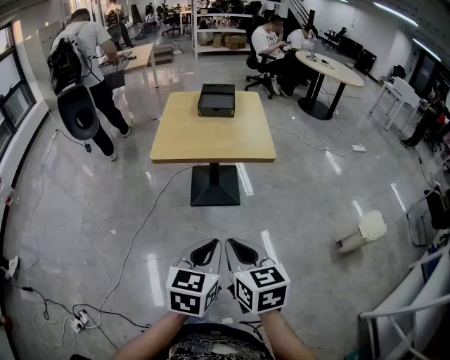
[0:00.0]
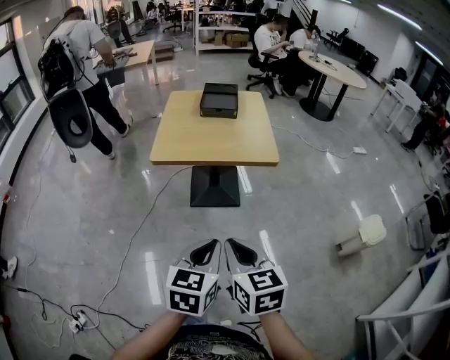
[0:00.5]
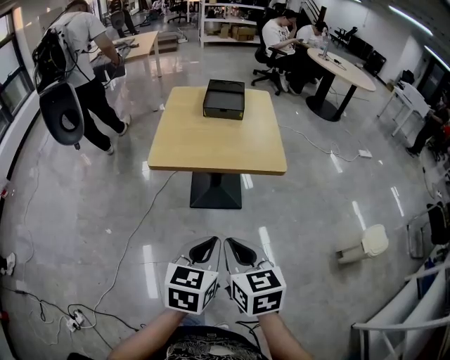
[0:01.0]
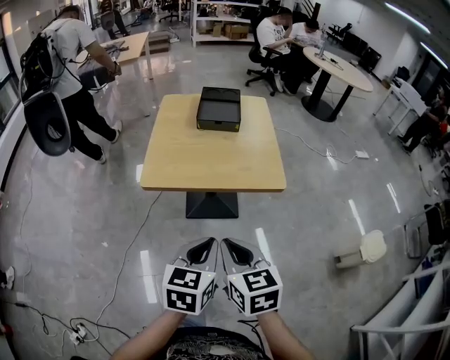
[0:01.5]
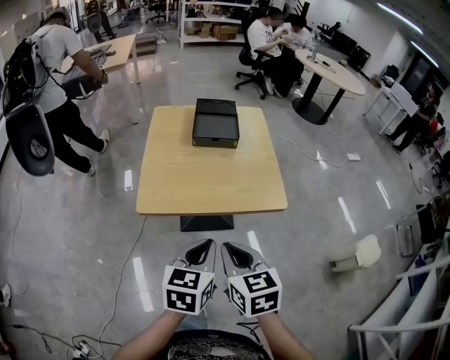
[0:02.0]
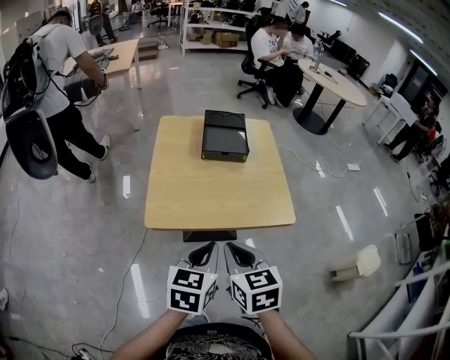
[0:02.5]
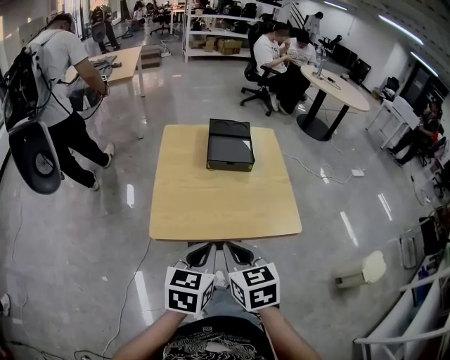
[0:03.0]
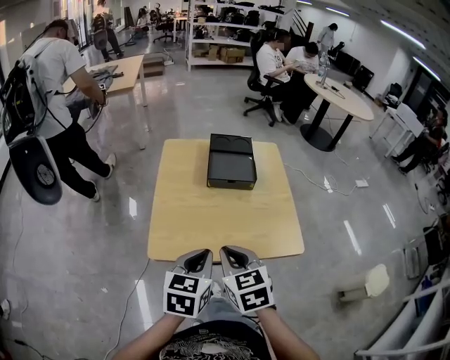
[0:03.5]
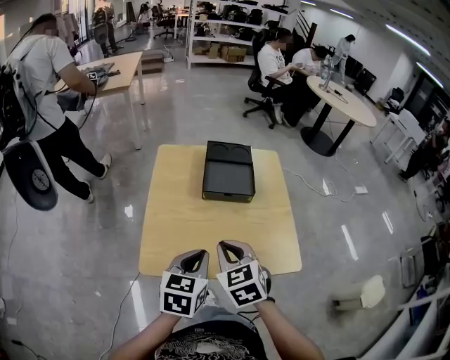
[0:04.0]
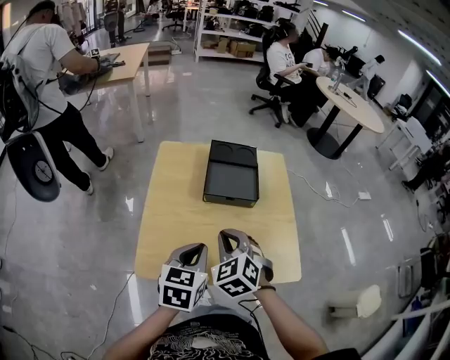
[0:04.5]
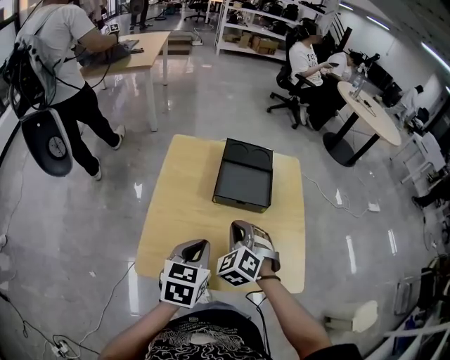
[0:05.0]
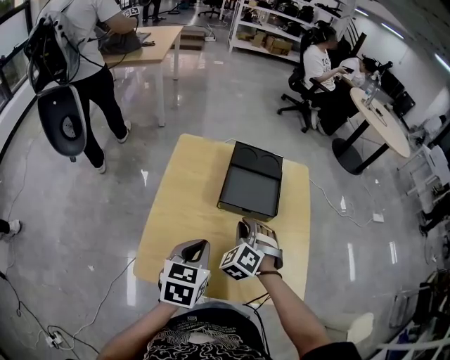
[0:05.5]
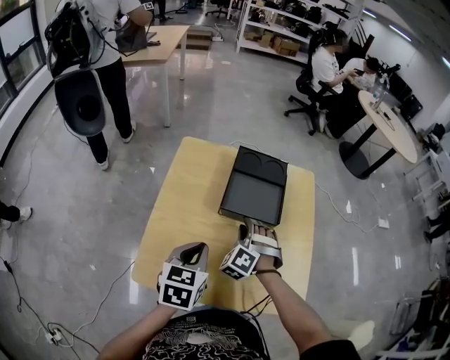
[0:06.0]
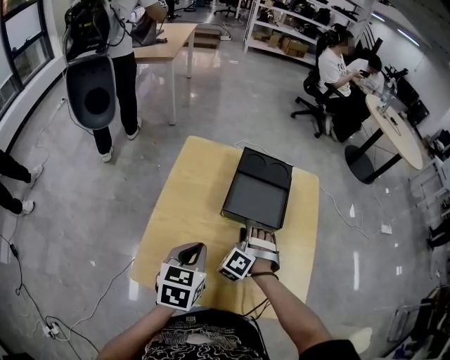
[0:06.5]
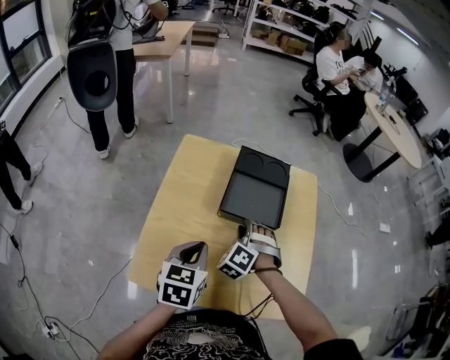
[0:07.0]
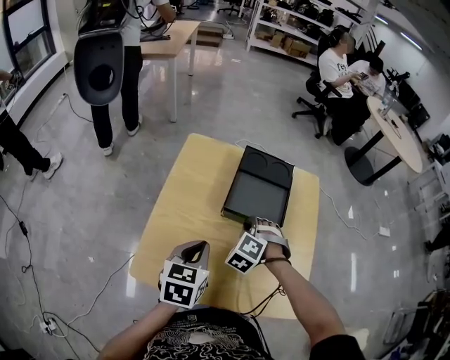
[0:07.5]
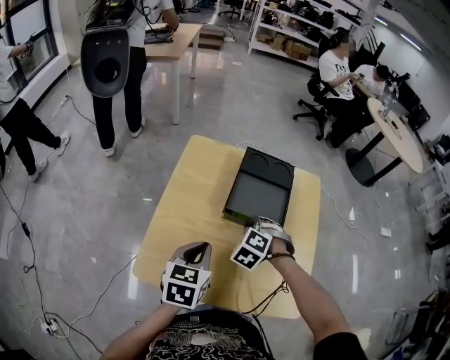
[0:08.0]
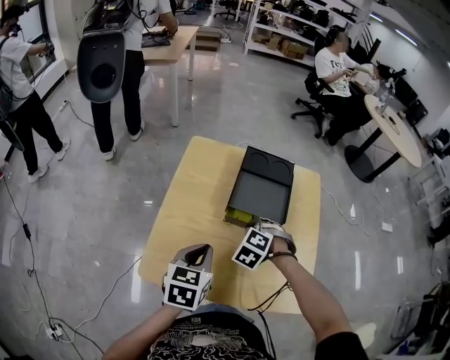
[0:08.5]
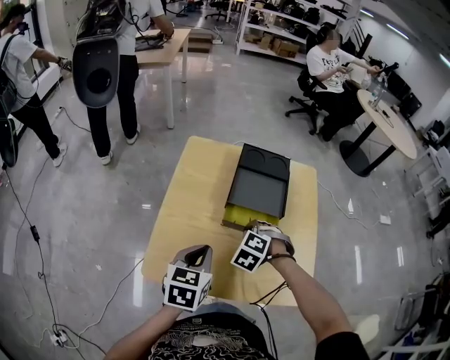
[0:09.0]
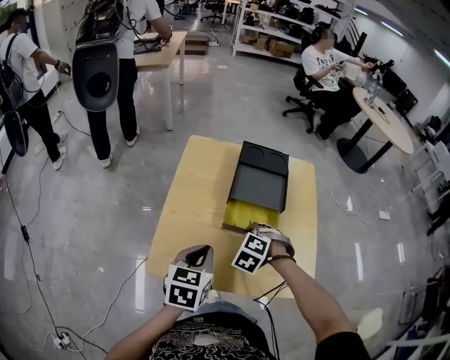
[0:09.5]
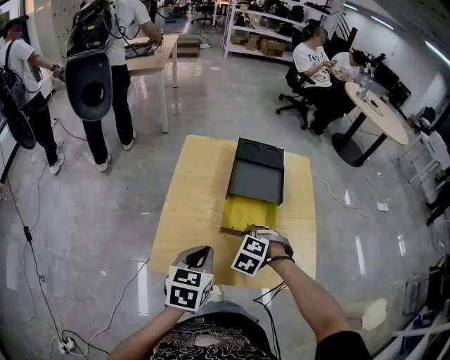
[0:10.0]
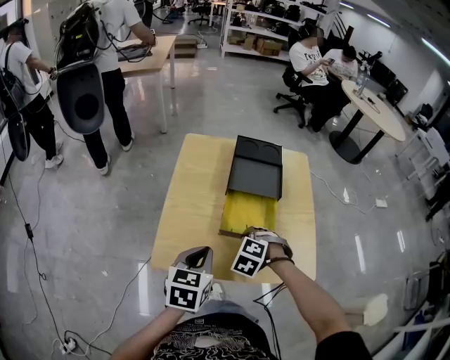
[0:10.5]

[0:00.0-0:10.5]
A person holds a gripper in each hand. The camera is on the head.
0:00.0 to 0:02.0: The right gripper shifts by about 5 cm.
0:02.0 to 0:04.0: The right gripper shifts some 5 cm forward, and swivels roughly 20 degrees.
0:04.0 to 0:06.5: The right gripper heads downward, covering approximately 10 cm, rotates around the line of its fingers by about 60 degrees, counterclockwise from behind, and opens its fingers. The left gripper goes some 5 cm backward.
0:06.5 to 0:08.5: The right gripper turns by some 30 degrees, and closes its fingers.
0:08.5 to 0:10.5: The grippers make only small movements.

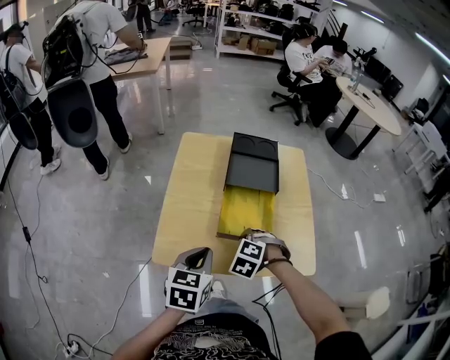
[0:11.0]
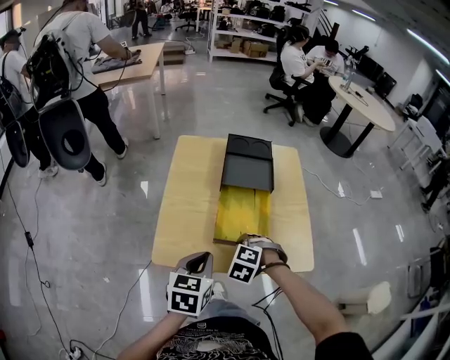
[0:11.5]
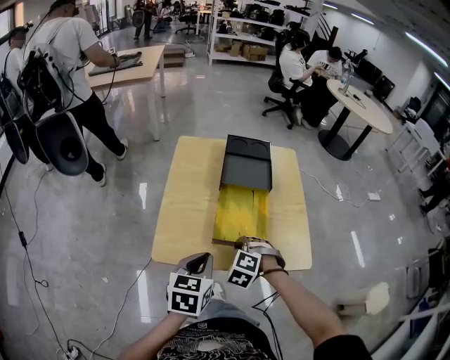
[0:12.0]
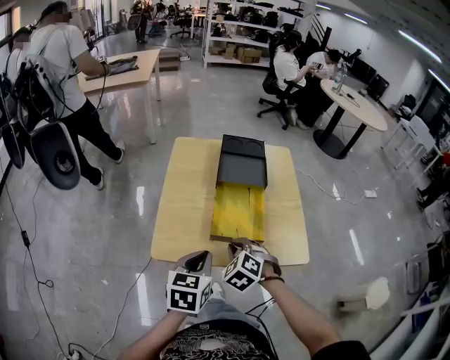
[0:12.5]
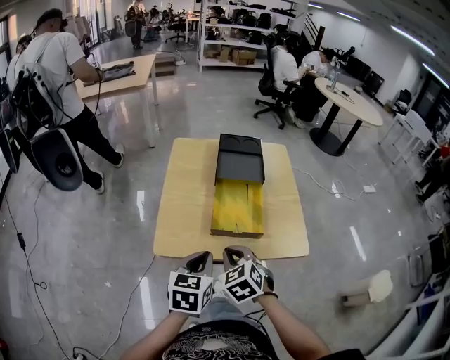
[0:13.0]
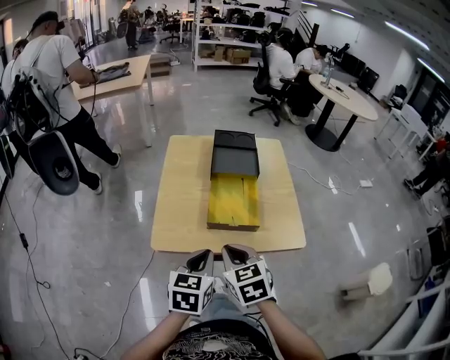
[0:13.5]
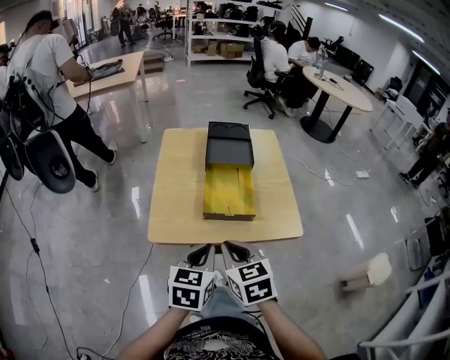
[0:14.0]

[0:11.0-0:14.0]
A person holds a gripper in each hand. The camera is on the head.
0:11.0 to 0:12.5: The right gripper swivels about 20 degrees.
0:12.5 to 0:14.0: The right gripper goes roughly 10 cm upward, and rolls clockwise, seen from behind, by some 40 degrees.

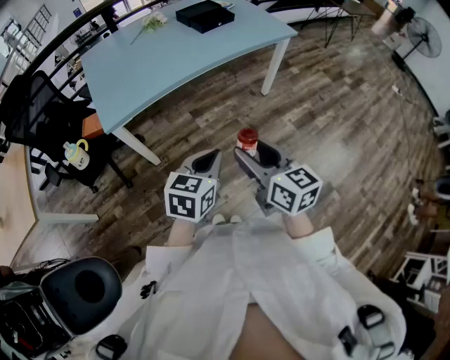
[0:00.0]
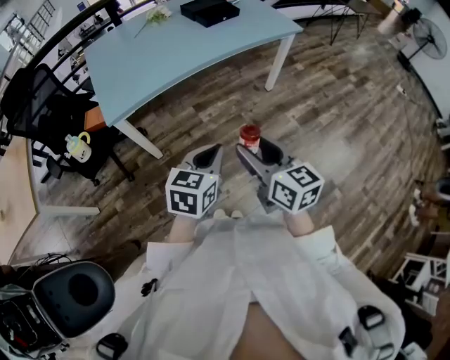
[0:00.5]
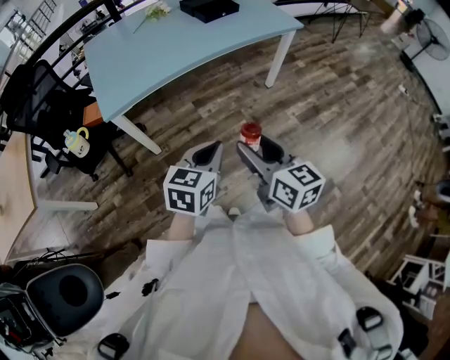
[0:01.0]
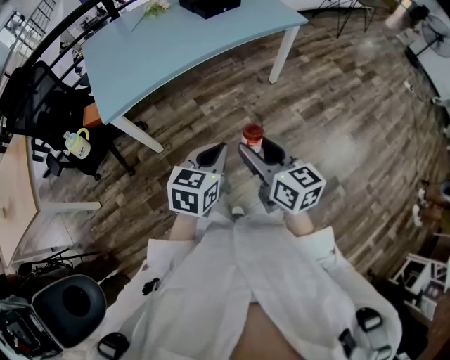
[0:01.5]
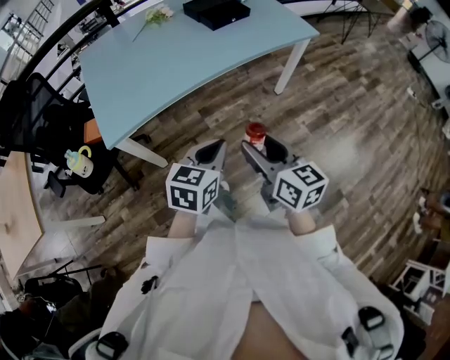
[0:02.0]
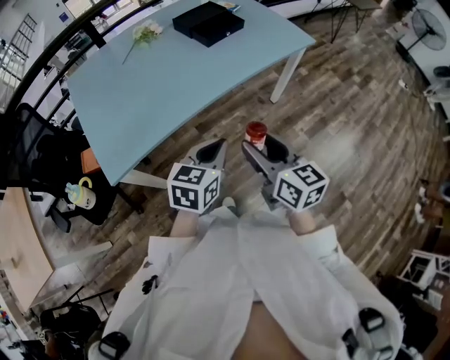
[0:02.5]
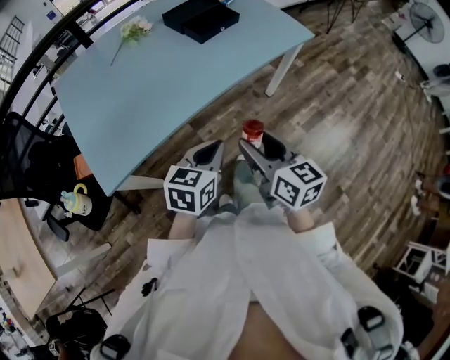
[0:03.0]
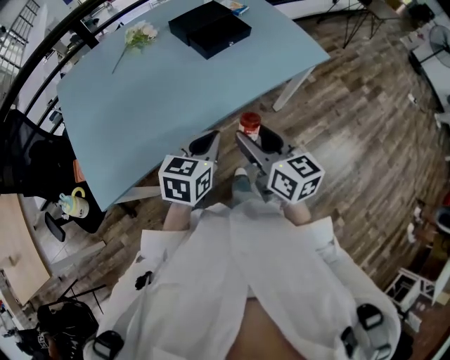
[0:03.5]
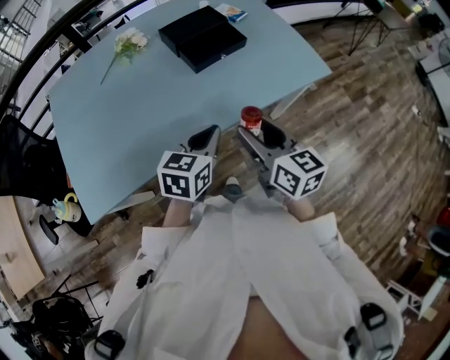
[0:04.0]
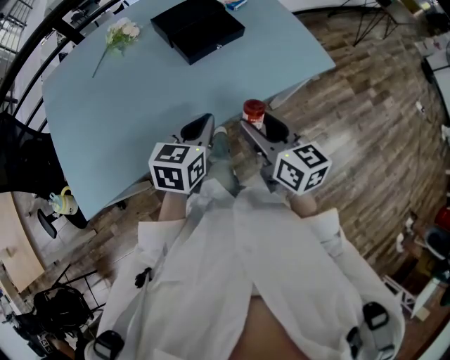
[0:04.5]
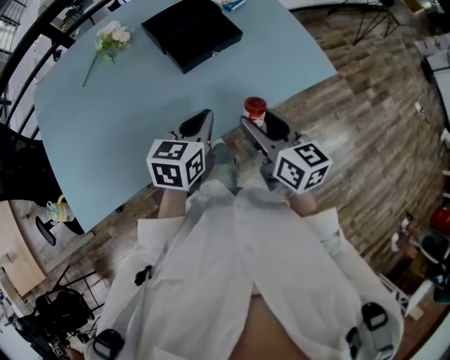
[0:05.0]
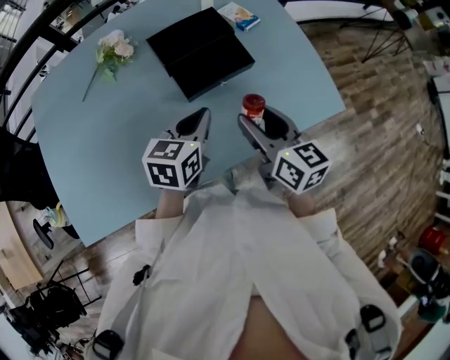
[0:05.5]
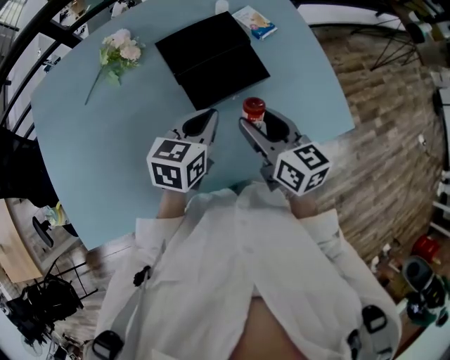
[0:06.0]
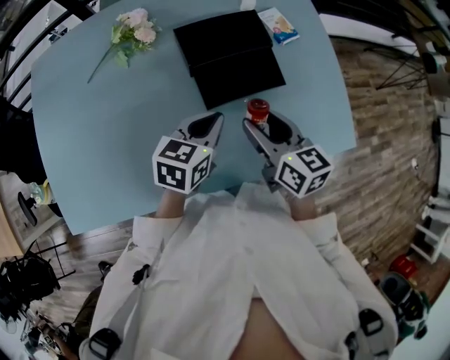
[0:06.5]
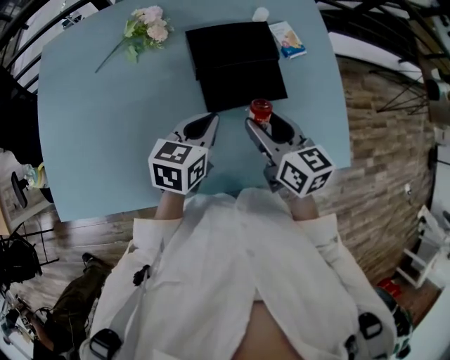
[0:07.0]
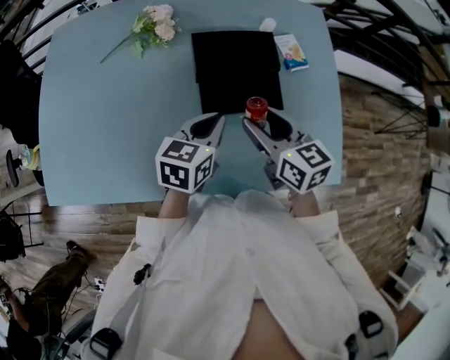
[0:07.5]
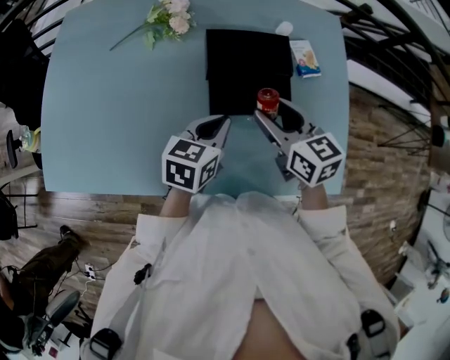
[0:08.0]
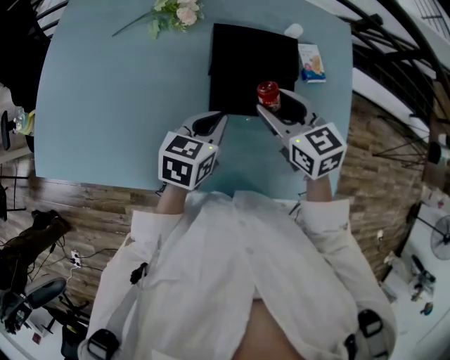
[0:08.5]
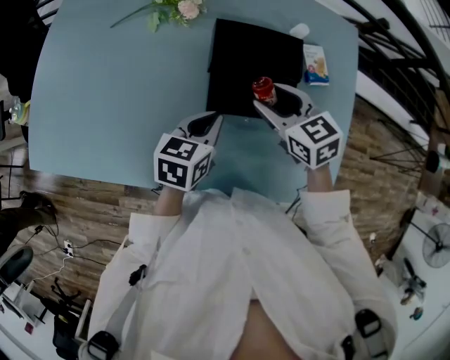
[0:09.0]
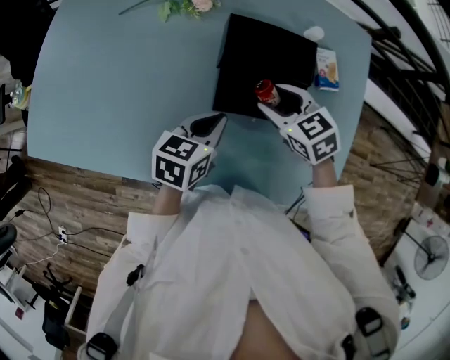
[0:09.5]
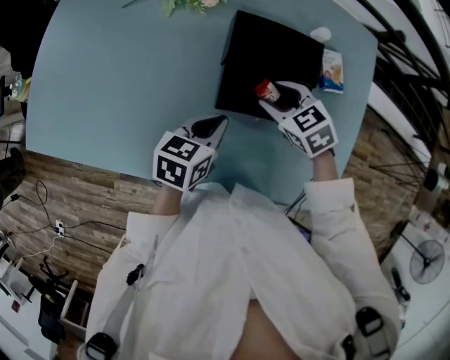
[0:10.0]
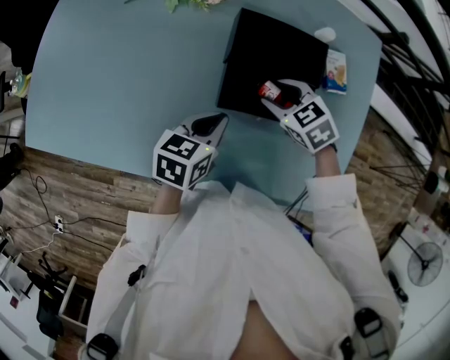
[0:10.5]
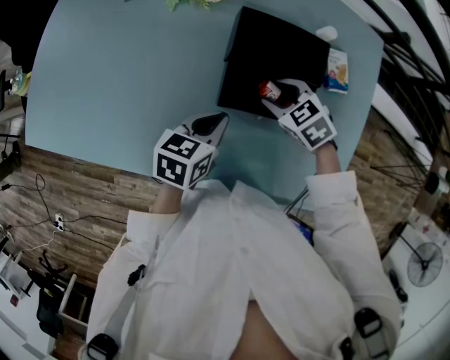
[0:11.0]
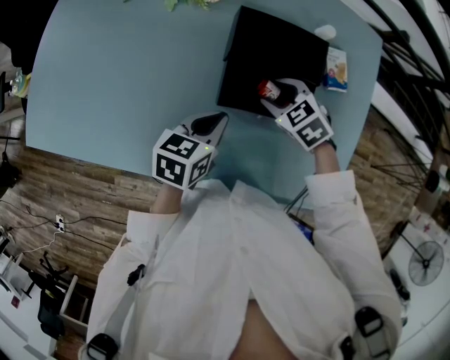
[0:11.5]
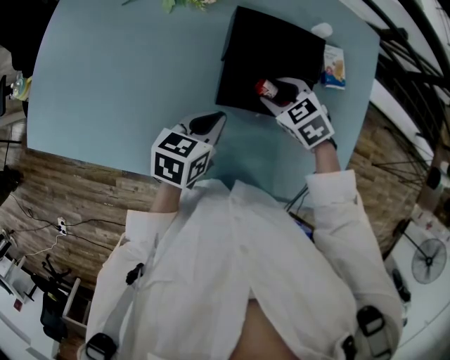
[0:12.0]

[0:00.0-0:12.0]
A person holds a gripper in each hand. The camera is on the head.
0:00.0 to 0:02.0: The grippers both shift forward by approximately 15 cm.
0:02.0 to 0:04.0: Both grippers travel together forward, about 40 cm.
0:04.0 to 0:06.0: Both grippers travel together forward, about 25 cm.
0:06.0 to 0:08.0: The left gripper swivels roughly 20 degrees, while the right gripper is displaced forward by some 10 cm, and turns by some 30 degrees.
0:08.0 to 0:10.0: The right gripper shifts about 15 cm downward and forward, and swivels approximately 40 degrees, while the left gripper shifts some 5 cm downward.
0:10.0 to 0:12.0: There are only small adjustments of the grippers.

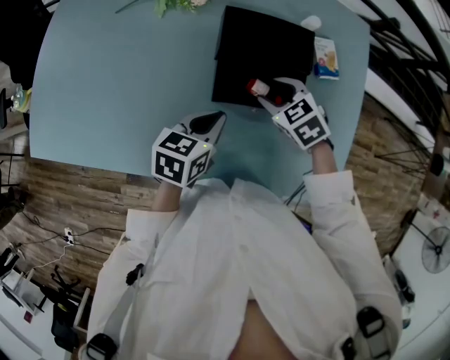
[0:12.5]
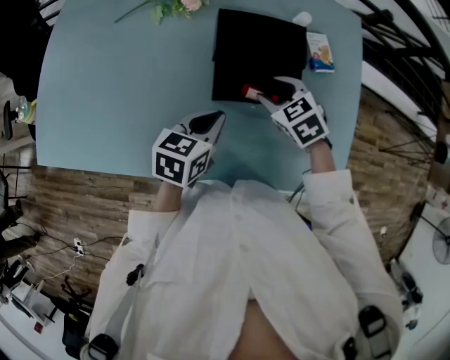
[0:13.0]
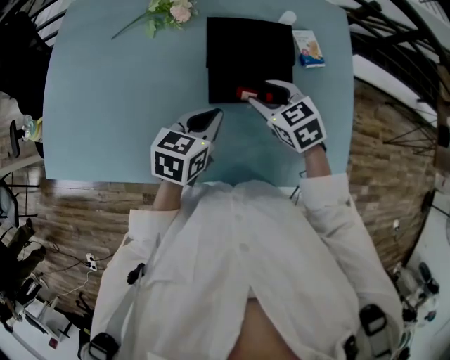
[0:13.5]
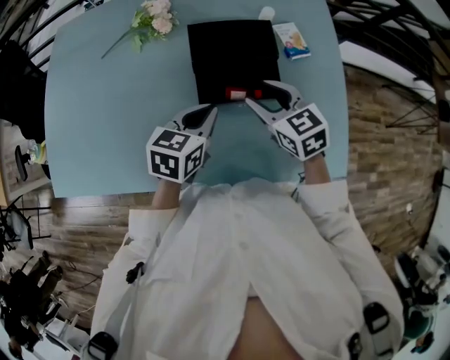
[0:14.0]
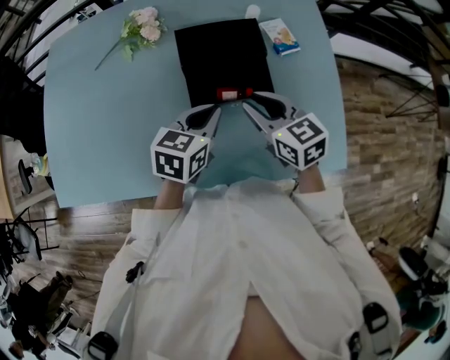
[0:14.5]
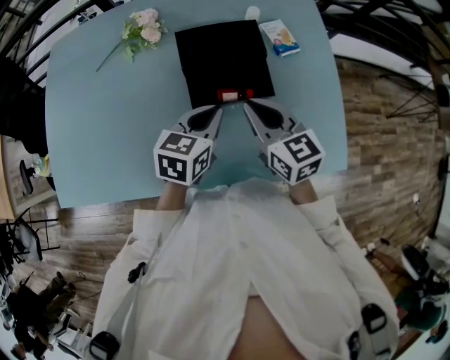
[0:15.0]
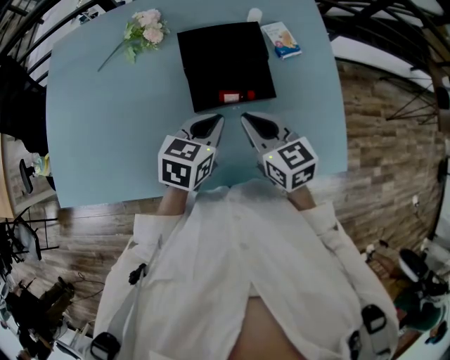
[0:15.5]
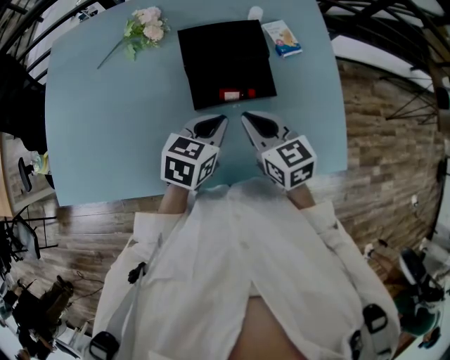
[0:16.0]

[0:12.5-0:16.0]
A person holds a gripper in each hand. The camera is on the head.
0:12.5 to 0:14.5: The left gripper goes some 5 cm upward. The right gripper shifts approximately 10 cm upward and backward, points its fingers some 30 degrees further upward, and closes up.
0:14.5 to 0:16.0: The right gripper closes.
